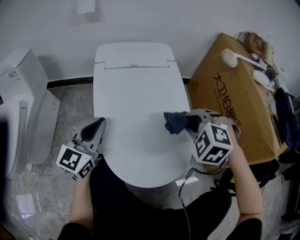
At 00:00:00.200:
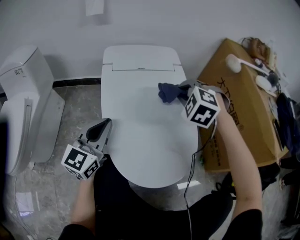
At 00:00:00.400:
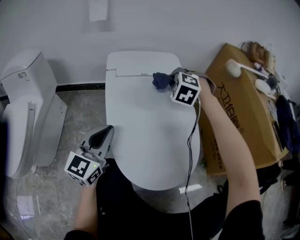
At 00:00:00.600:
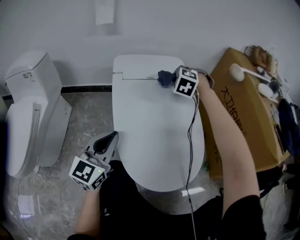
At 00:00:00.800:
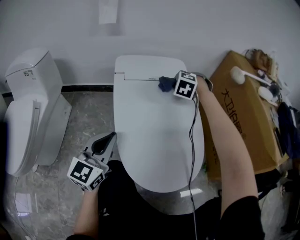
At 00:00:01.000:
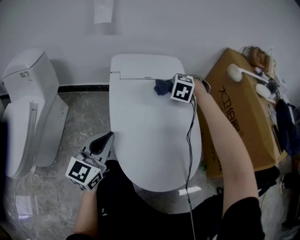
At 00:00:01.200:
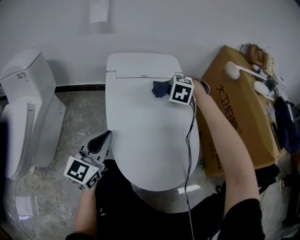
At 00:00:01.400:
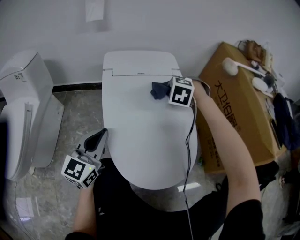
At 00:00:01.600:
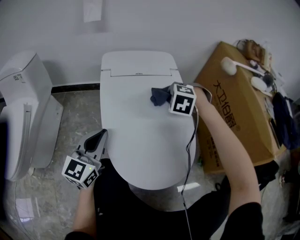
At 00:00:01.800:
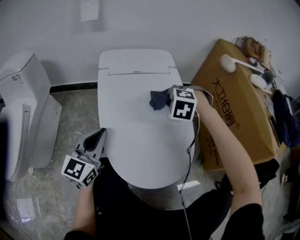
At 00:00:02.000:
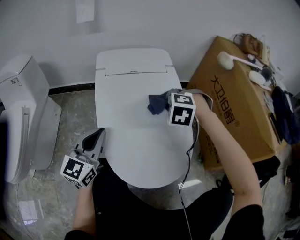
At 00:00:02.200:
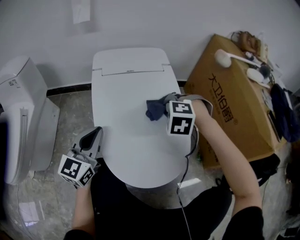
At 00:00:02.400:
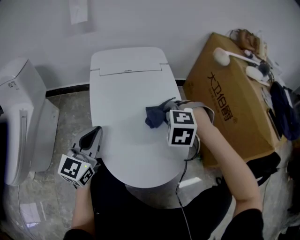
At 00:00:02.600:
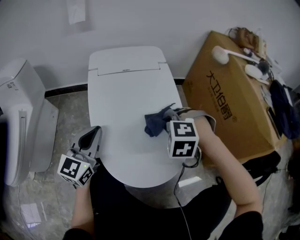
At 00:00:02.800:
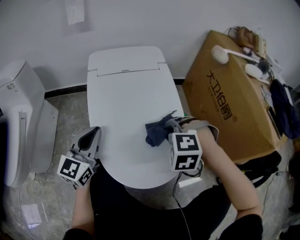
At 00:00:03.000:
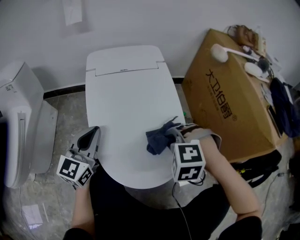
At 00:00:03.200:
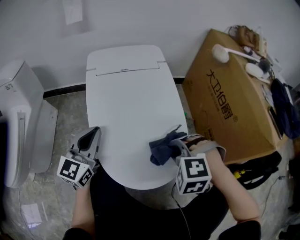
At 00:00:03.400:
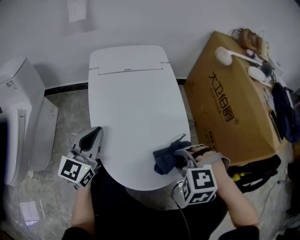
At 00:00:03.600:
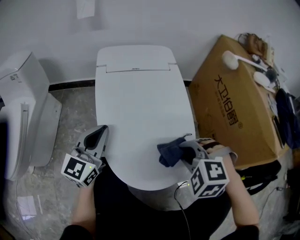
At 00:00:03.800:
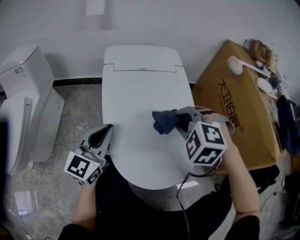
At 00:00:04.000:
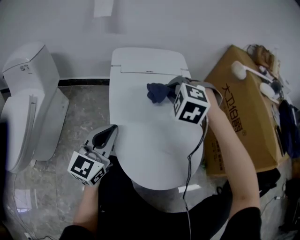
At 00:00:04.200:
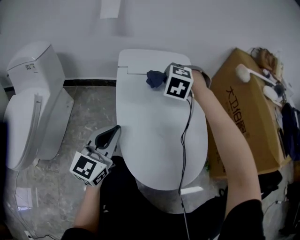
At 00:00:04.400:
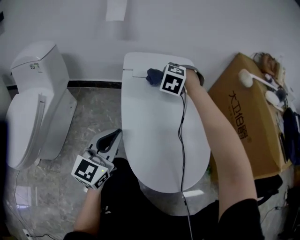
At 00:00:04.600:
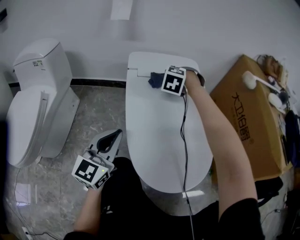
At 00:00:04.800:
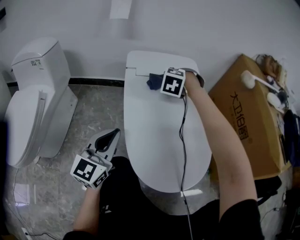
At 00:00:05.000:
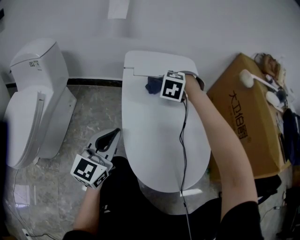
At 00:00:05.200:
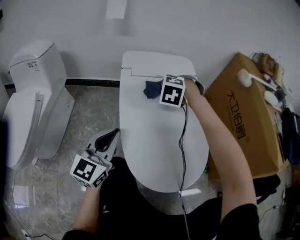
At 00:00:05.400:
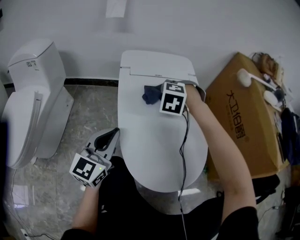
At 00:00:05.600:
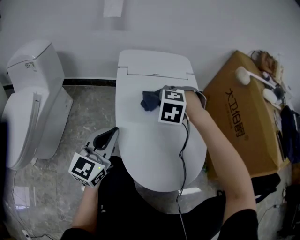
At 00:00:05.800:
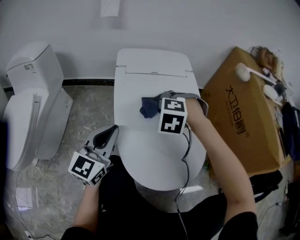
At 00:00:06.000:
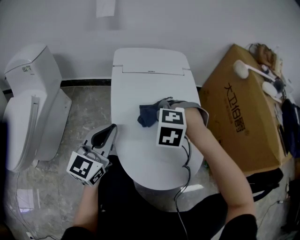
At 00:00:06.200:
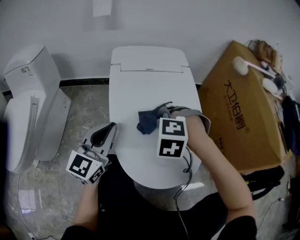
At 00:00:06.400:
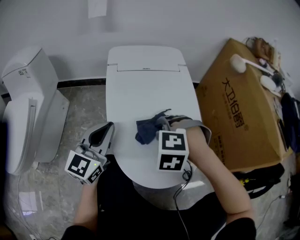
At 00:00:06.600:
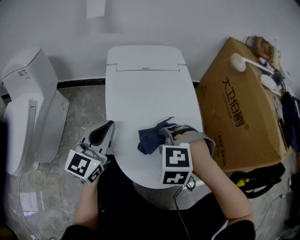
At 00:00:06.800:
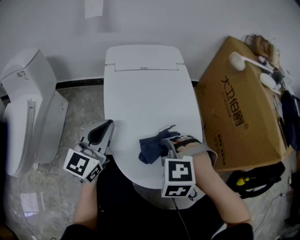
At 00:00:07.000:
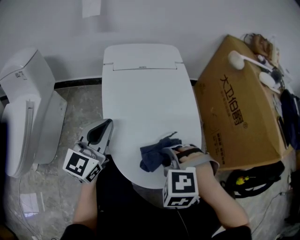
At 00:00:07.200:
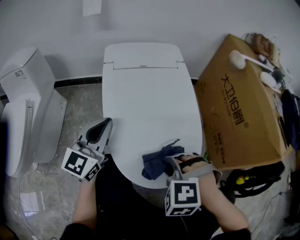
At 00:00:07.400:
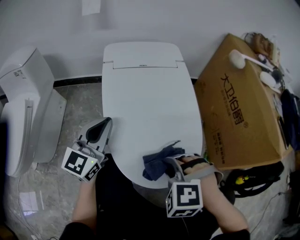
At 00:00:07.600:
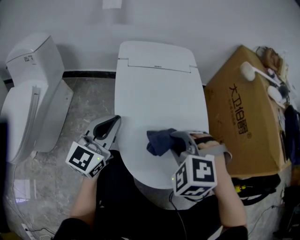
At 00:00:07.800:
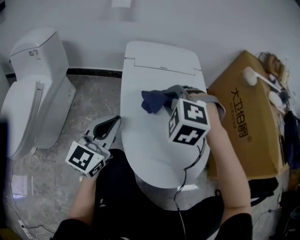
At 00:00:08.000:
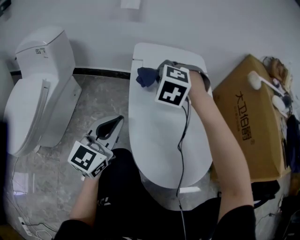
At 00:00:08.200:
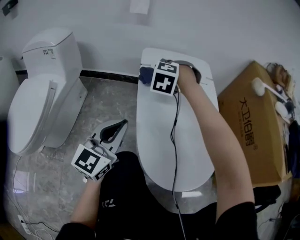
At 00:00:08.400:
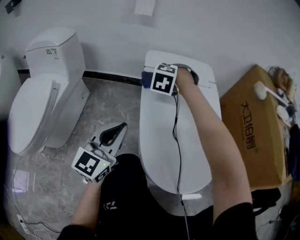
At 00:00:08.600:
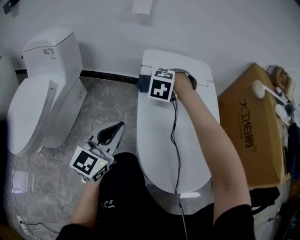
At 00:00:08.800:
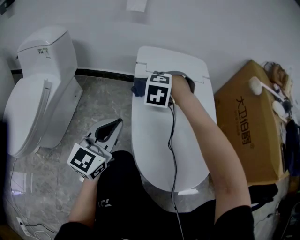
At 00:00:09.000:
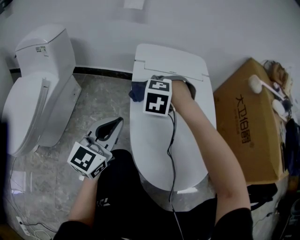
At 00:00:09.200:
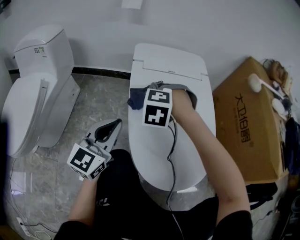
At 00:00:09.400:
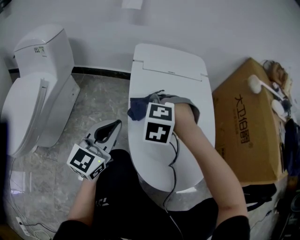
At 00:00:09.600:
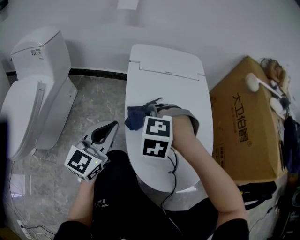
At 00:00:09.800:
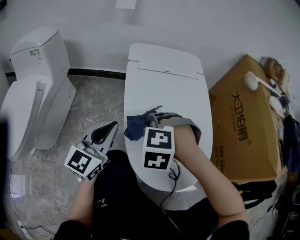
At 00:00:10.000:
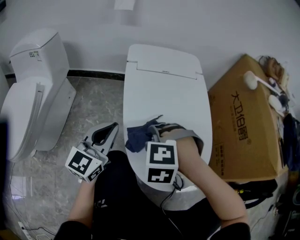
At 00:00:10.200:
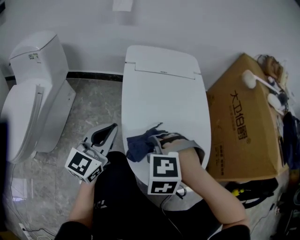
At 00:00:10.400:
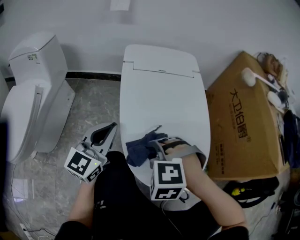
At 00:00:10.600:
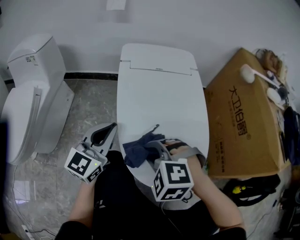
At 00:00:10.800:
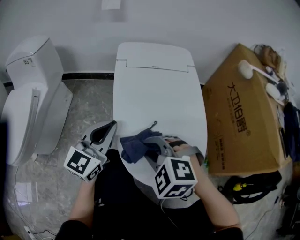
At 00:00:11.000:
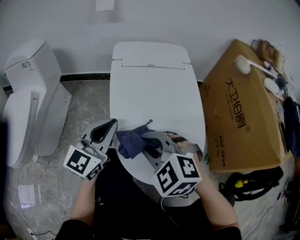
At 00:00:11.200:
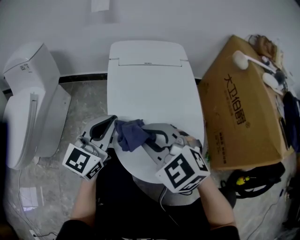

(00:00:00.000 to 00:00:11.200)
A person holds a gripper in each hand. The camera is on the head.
00:00:03.200 - 00:00:04.800: The left gripper moves approximately 5 cm.
00:00:09.600 - 00:00:11.200: The left gripper changes place by some 5 cm.

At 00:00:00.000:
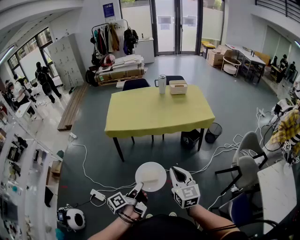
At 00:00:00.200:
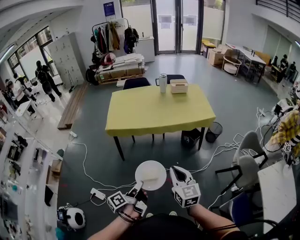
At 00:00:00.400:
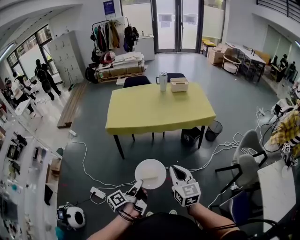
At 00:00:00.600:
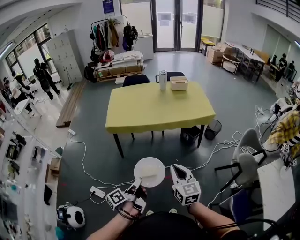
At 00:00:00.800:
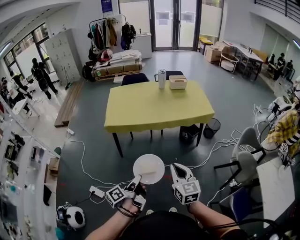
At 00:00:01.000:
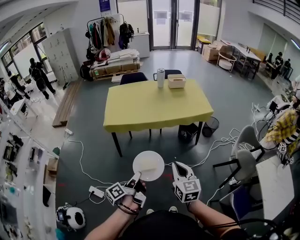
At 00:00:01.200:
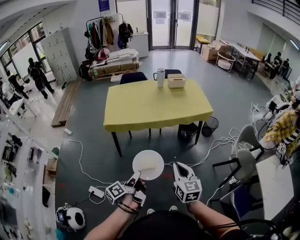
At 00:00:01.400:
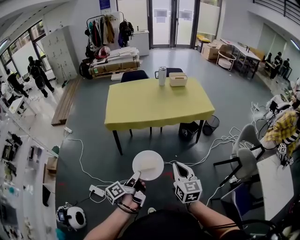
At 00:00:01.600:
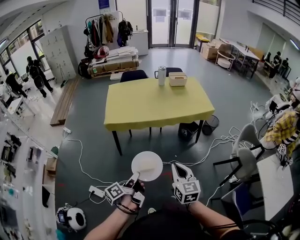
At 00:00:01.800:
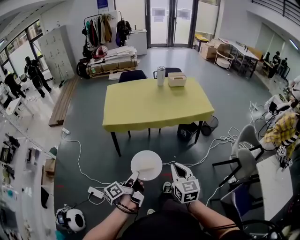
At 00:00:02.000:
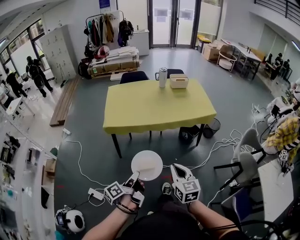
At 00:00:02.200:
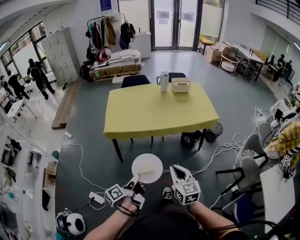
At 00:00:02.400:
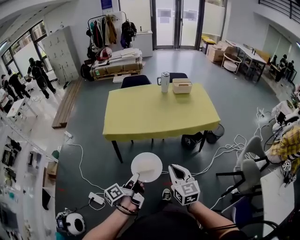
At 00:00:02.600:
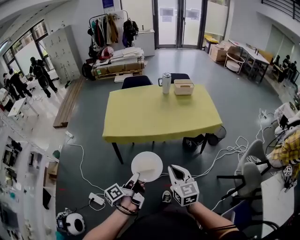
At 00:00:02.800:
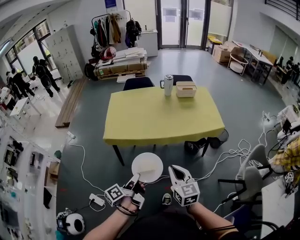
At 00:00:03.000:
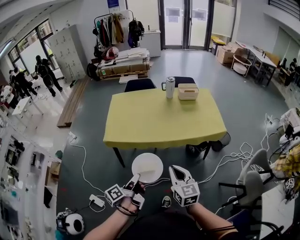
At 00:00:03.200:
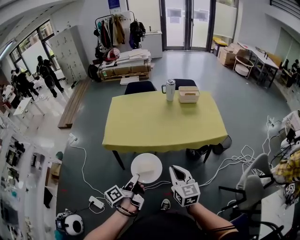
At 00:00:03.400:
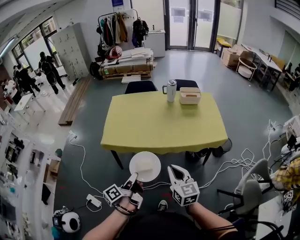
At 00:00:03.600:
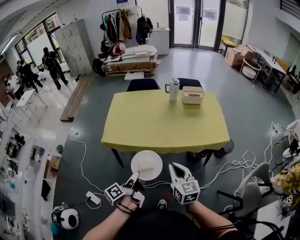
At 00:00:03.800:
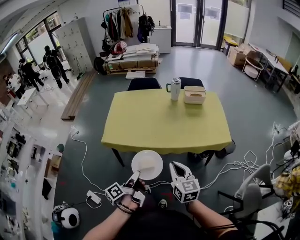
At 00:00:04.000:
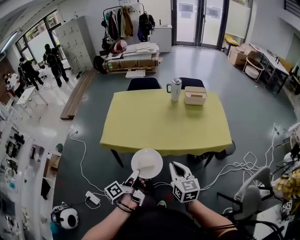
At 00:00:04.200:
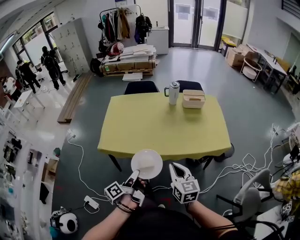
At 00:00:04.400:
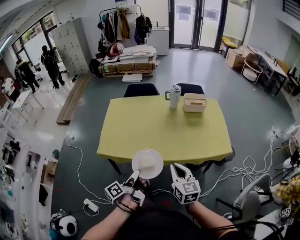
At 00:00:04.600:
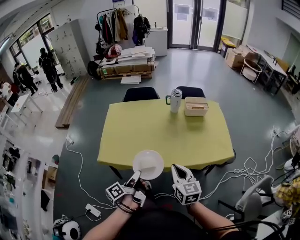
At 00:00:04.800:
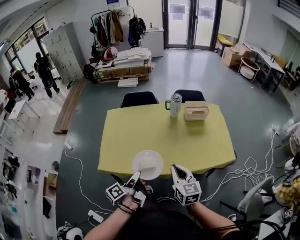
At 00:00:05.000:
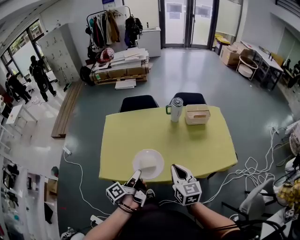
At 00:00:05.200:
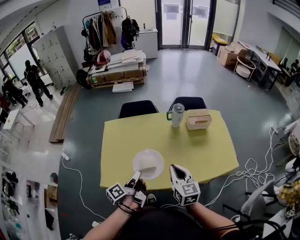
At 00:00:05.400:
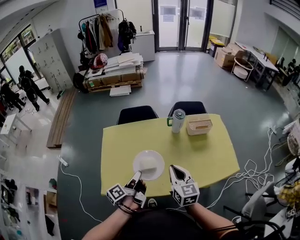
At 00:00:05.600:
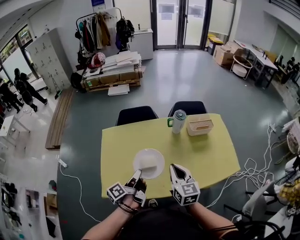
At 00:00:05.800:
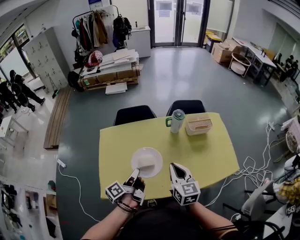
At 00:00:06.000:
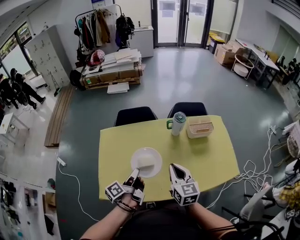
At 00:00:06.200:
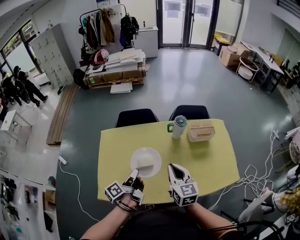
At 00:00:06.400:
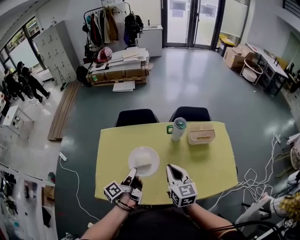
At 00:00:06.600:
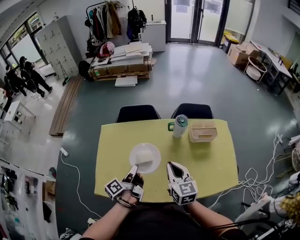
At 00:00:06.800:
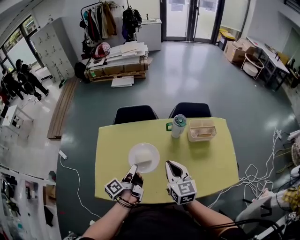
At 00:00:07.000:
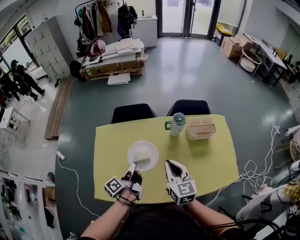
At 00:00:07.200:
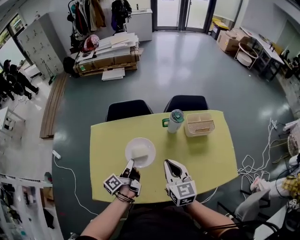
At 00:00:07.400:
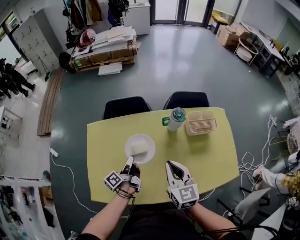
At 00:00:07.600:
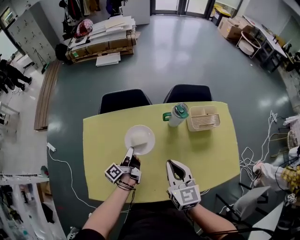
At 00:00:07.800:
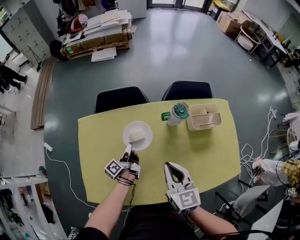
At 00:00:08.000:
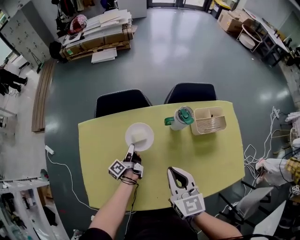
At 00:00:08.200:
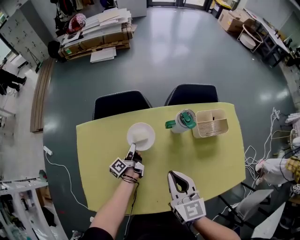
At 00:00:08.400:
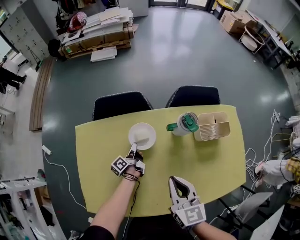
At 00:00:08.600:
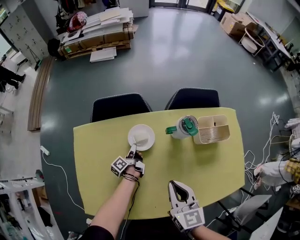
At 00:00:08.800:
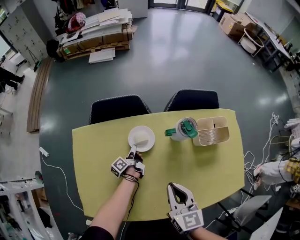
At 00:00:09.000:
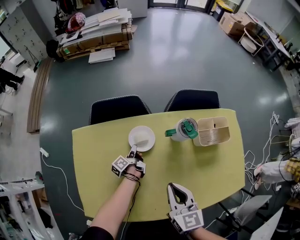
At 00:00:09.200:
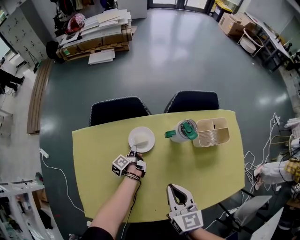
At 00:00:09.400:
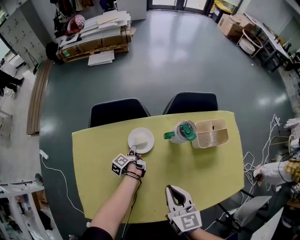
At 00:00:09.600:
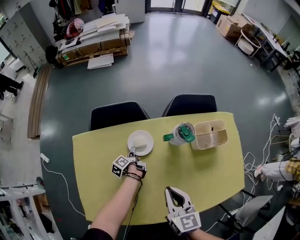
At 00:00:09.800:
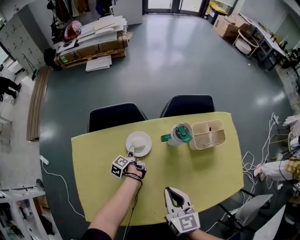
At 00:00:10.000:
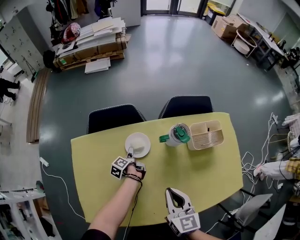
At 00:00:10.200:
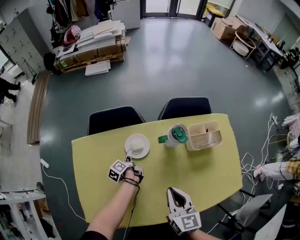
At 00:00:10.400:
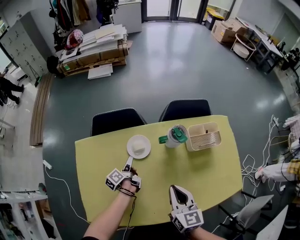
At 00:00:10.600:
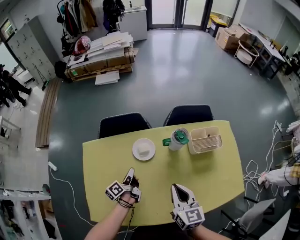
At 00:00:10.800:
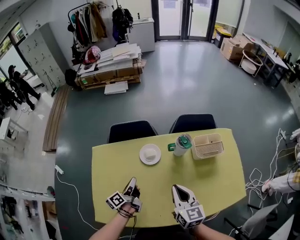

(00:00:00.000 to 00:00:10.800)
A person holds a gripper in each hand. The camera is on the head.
00:00:00.000 - 00:00:01.600: The right gripper shifts by approximately 5 cm.
00:00:01.600 - 00:00:03.000: The right gripper ends up approximately 25 cm from where it was.
00:00:03.000 - 00:00:04.600: The right gripper changes place by about 25 cm.
00:00:04.600 - 00:00:06.200: The right gripper ends up approximately 30 cm from where it was.
00:00:06.200 - 00:00:07.800: The right gripper moves about 15 cm.
00:00:07.800 - 00:00:09.200: The right gripper shifts approximately 5 cm downward.
00:00:09.200 - 00:00:10.800: The right gripper changes place by roughly 5 cm.

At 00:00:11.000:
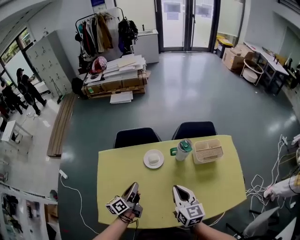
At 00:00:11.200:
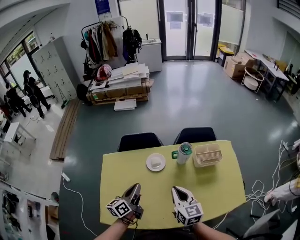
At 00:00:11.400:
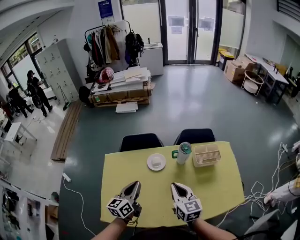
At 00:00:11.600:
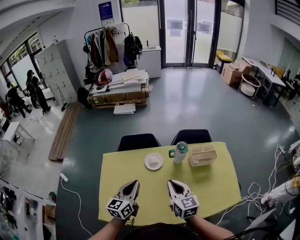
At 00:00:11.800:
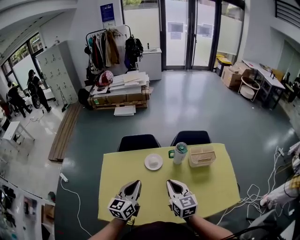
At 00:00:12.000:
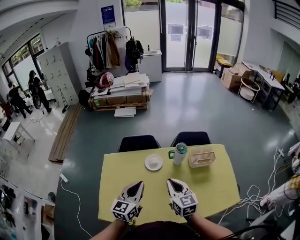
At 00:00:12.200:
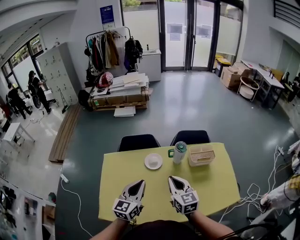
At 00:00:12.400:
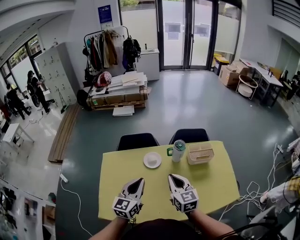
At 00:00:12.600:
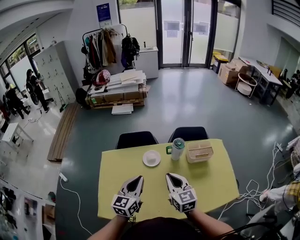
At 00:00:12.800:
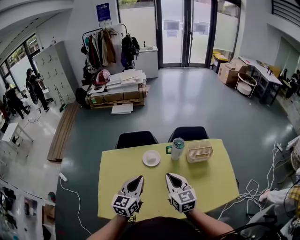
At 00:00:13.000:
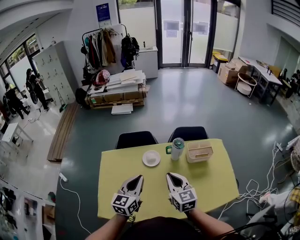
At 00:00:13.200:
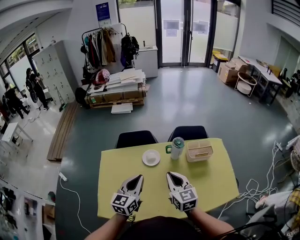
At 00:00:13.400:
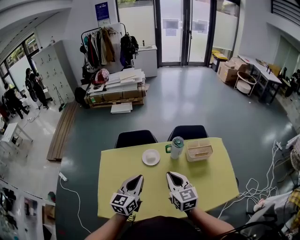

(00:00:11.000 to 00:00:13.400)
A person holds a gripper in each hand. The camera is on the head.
00:00:11.000 - 00:00:12.200: The right gripper moves upward, some 5 cm.
